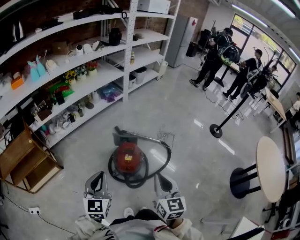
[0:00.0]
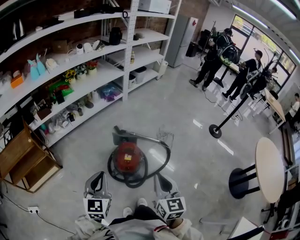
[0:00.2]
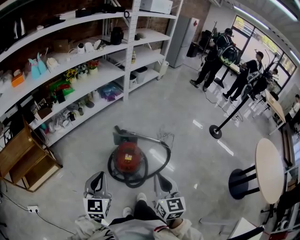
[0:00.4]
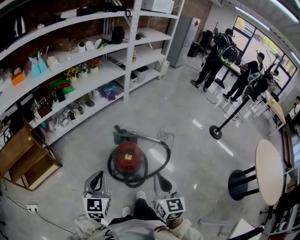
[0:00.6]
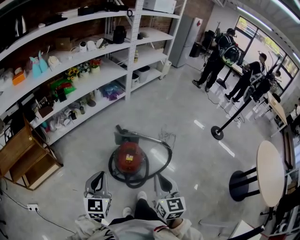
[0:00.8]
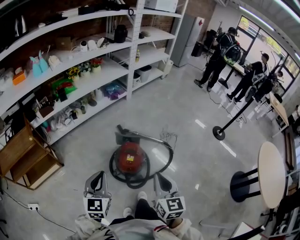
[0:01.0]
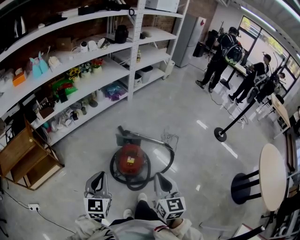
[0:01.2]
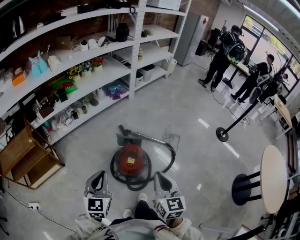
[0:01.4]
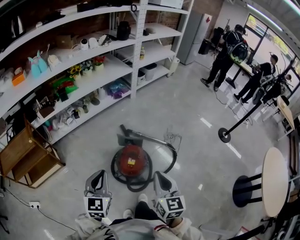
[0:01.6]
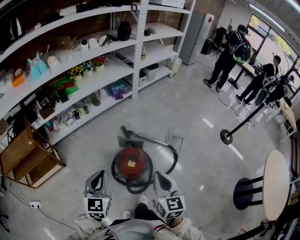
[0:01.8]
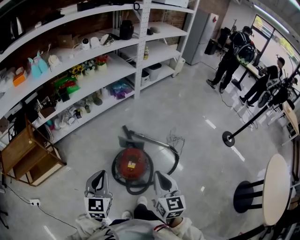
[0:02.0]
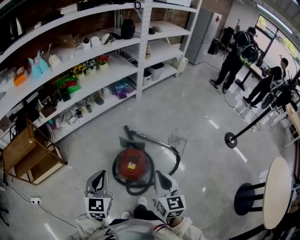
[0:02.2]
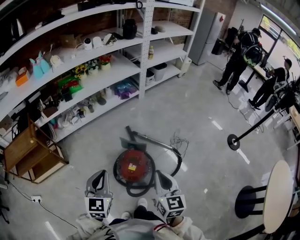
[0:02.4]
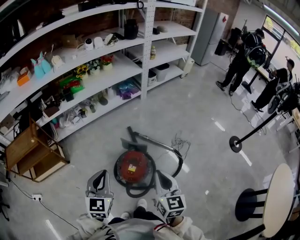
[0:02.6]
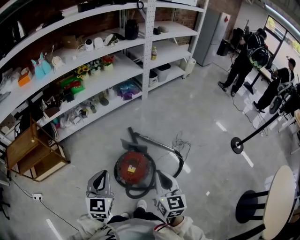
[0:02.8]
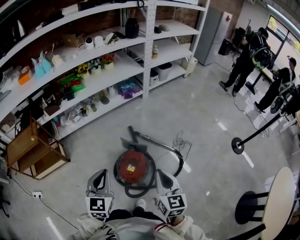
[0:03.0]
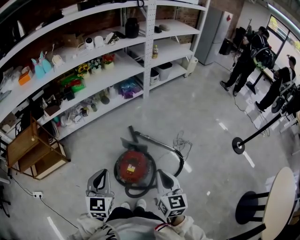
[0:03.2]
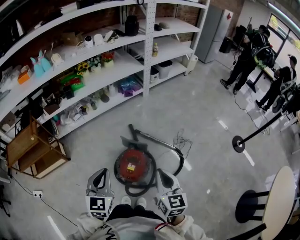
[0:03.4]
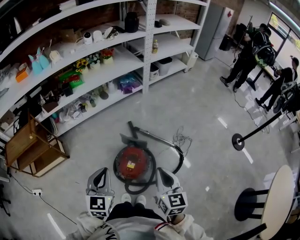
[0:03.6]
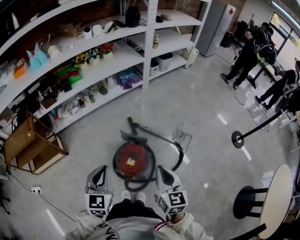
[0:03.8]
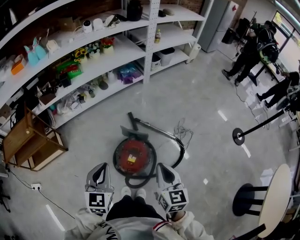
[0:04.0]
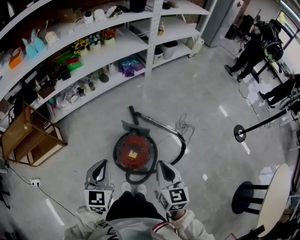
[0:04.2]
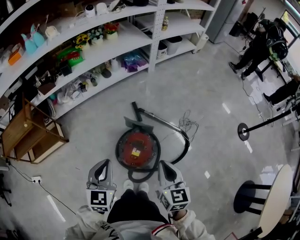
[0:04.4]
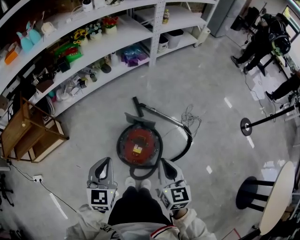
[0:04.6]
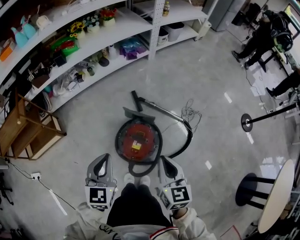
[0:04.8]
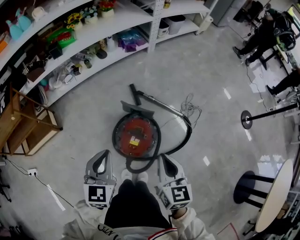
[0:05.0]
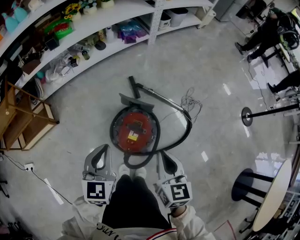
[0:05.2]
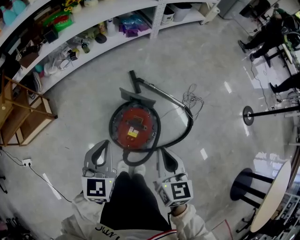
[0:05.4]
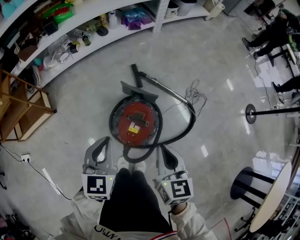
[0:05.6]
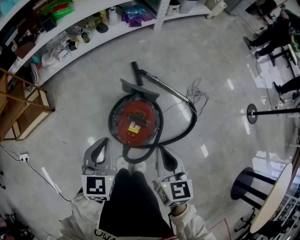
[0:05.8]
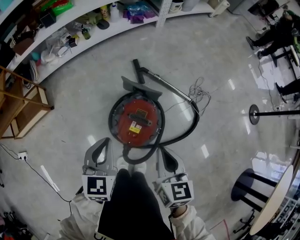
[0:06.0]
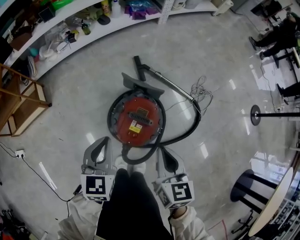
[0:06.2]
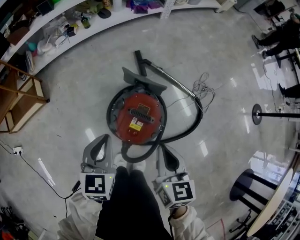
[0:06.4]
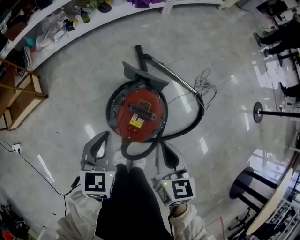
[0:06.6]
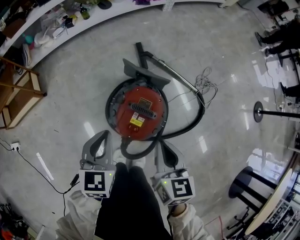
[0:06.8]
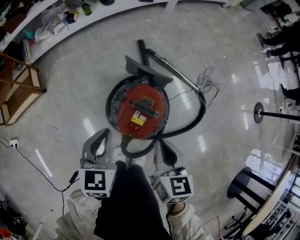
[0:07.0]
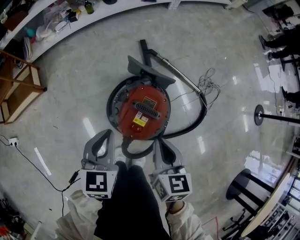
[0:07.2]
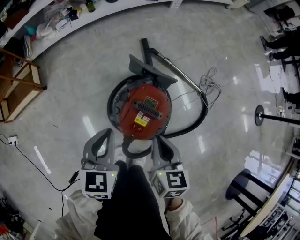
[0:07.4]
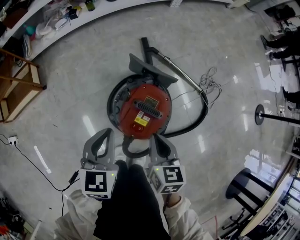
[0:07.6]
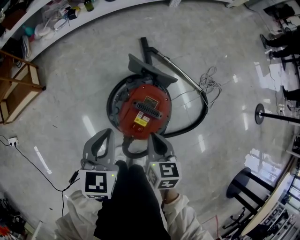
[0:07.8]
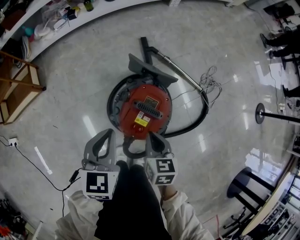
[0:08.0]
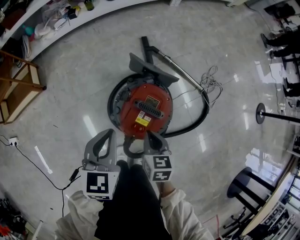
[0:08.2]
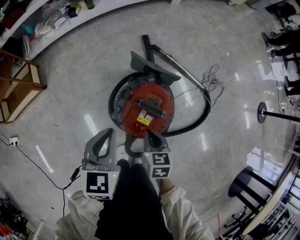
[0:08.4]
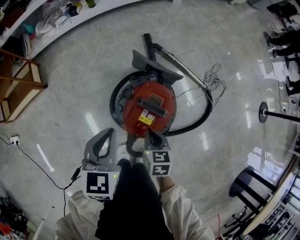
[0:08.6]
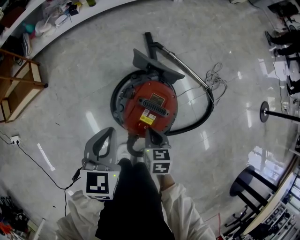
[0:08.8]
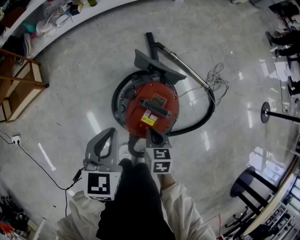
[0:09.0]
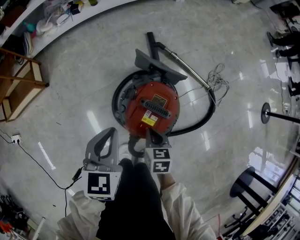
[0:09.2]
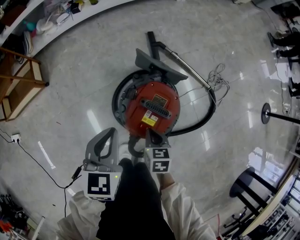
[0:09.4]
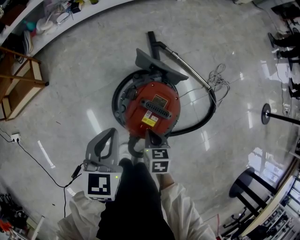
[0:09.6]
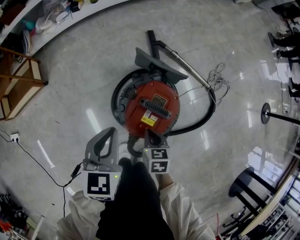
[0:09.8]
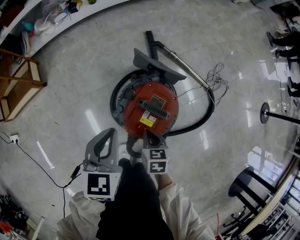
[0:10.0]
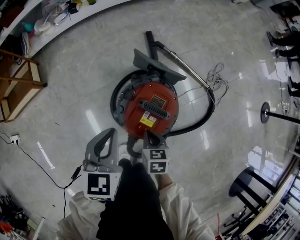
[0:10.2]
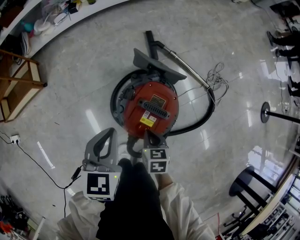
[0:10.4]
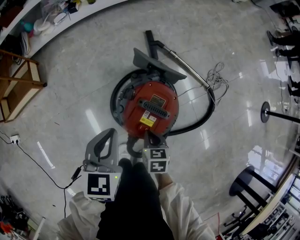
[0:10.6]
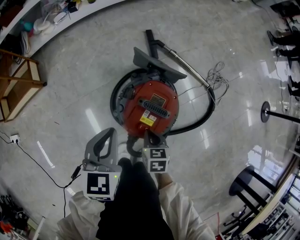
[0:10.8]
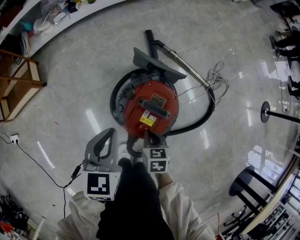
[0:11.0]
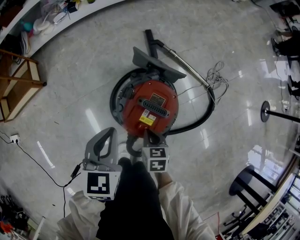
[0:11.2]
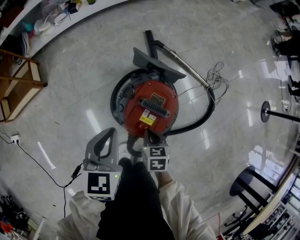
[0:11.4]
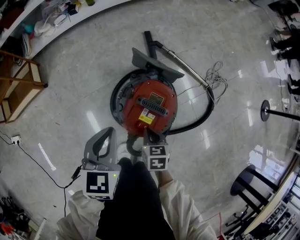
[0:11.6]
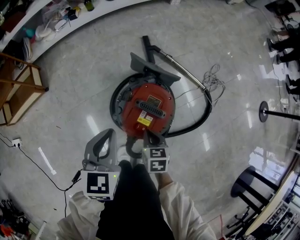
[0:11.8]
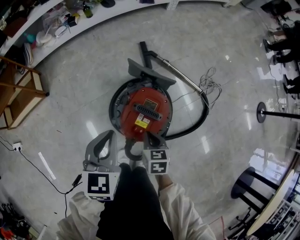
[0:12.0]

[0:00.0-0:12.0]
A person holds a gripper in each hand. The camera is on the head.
0:00.0 to 0:01.6: The grippers both shift forward by roughly 5 cm.
0:01.6 to 0:03.0: The left gripper shifts some 10 cm to the right and forward. The right gripper moves forward and to the right, some 10 cm.
0:03.0 to 0:04.4: Both grippers travel together downward, about 5 cm.
0:04.4 to 0:06.0: Both grippers move downward, roughly 15 cm.
0:06.0 to 0:07.6: The left gripper heads downward, covering roughly 10 cm; the right gripper is displaced downward by roughly 15 cm.
0:07.6 to 0:09.0: The right gripper is displaced downward by roughly 10 cm.
0:09.0 to 0:12.0: The grippers stay close to where they were, moving slightly.

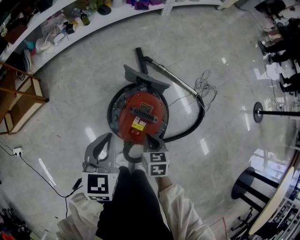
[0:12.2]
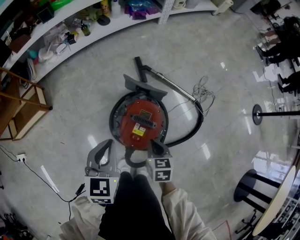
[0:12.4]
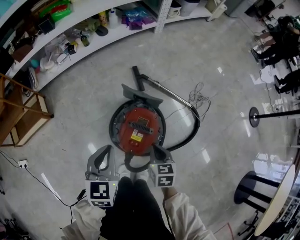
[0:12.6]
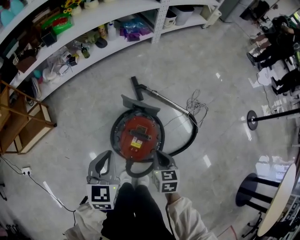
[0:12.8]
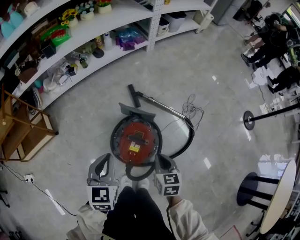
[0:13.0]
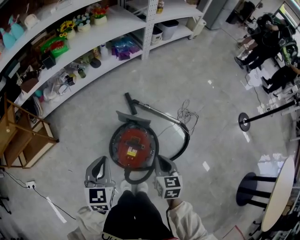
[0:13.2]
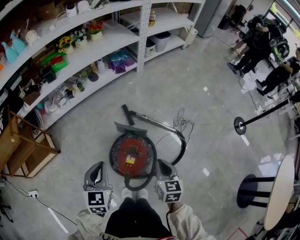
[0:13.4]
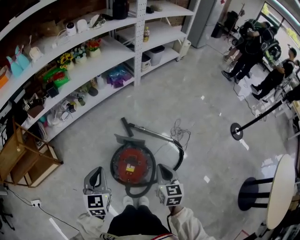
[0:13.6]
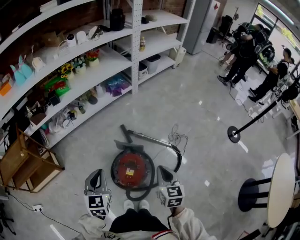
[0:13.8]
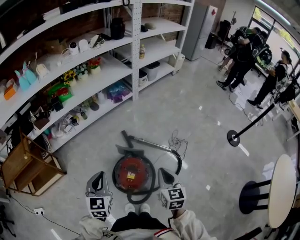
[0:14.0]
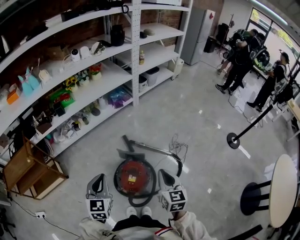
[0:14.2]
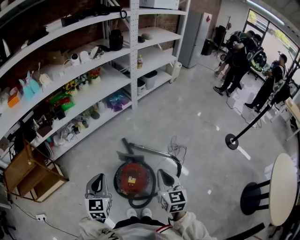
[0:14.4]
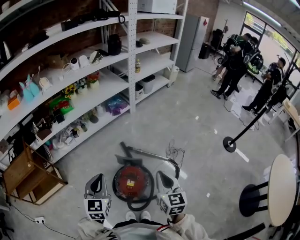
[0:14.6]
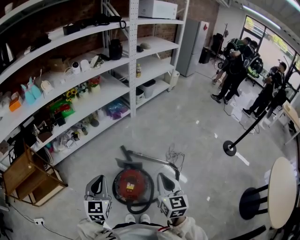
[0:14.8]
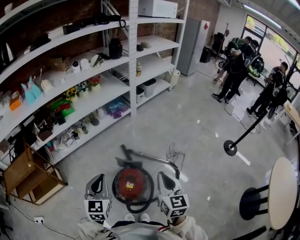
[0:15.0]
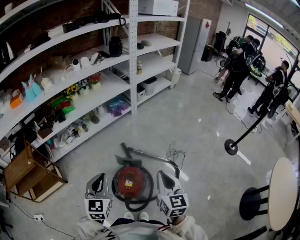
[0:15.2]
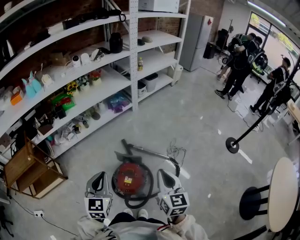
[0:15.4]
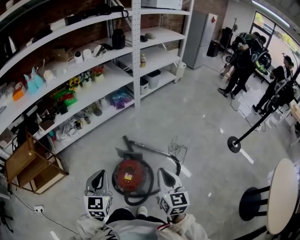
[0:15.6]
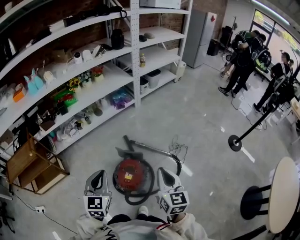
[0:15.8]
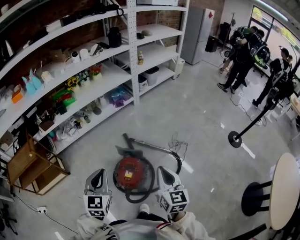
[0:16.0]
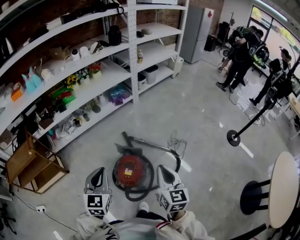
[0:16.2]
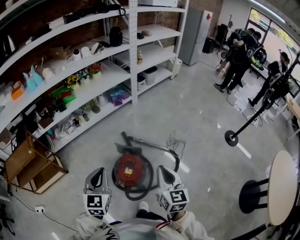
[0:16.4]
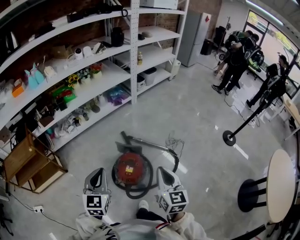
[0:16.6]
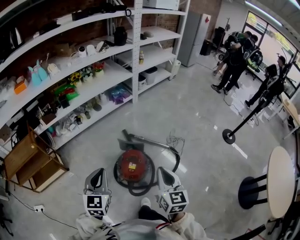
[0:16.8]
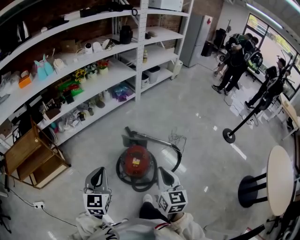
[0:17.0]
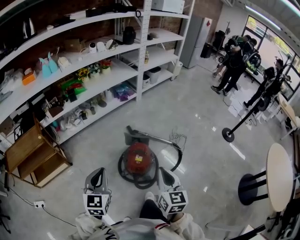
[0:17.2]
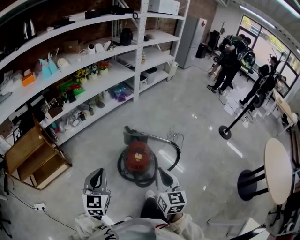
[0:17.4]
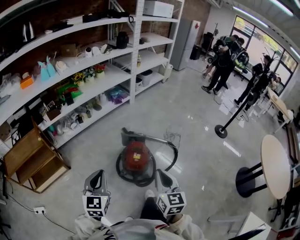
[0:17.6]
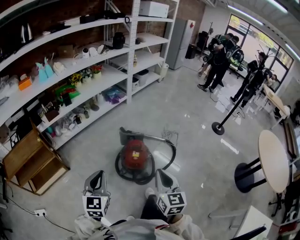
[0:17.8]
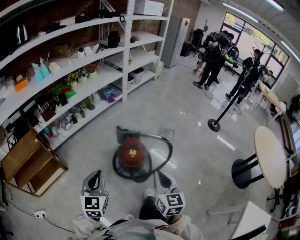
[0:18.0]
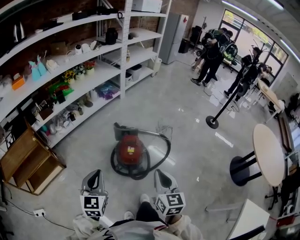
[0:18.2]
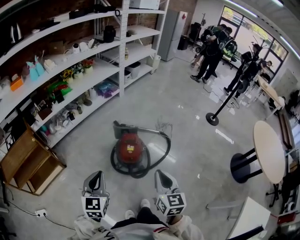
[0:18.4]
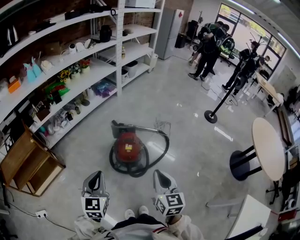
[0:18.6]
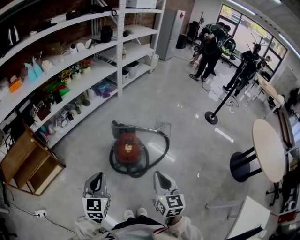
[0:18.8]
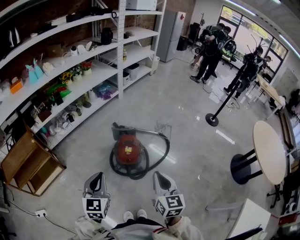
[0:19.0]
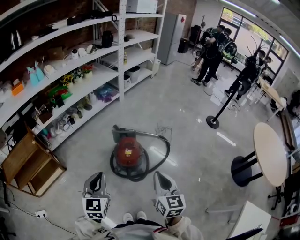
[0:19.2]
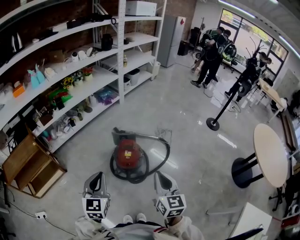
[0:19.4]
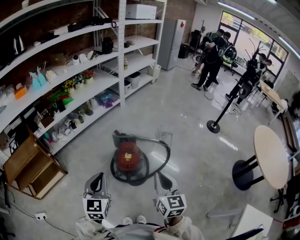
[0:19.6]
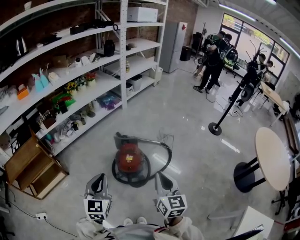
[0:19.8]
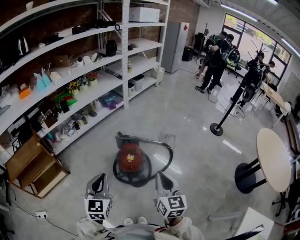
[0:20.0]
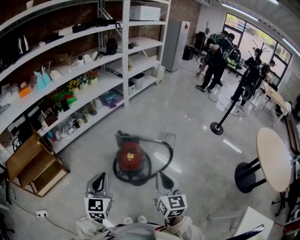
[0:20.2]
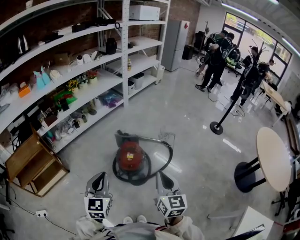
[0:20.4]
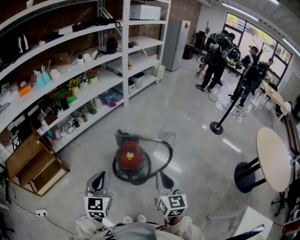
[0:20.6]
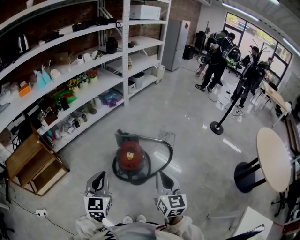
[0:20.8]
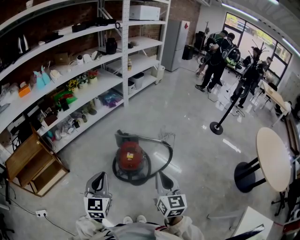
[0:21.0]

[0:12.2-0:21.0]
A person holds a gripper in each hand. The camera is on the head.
0:12.2 to 0:13.6: The right gripper goes about 30 cm upward, and changes its angle by approximately 30 degrees; the left gripper travels upward by some 20 cm.
0:13.6 to 0:15.2: The right gripper moves upward, roughly 15 cm, while the left gripper travels upward by some 10 cm.
0:15.2 to 0:16.6: The grippers both shift backward by some 5 cm.
0:16.6 to 0:18.0: Both grippers travel together backward and to the left, approximately 20 cm.
0:18.0 to 0:19.6: The two grippers go approximately 5 cm to the right.
0:19.6 to 0:21.0: Both grippers stay about where they are.

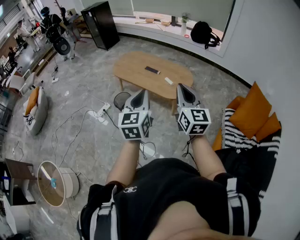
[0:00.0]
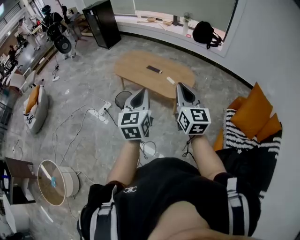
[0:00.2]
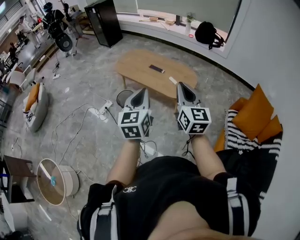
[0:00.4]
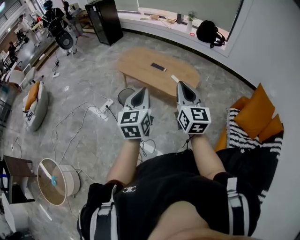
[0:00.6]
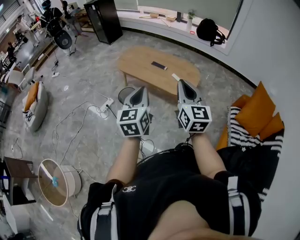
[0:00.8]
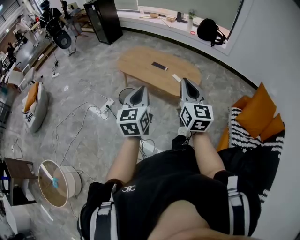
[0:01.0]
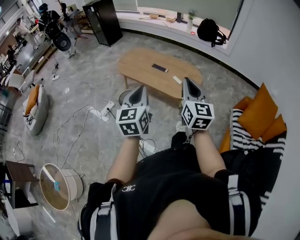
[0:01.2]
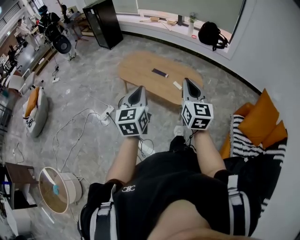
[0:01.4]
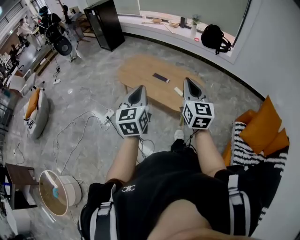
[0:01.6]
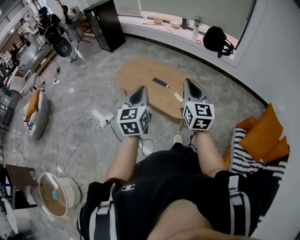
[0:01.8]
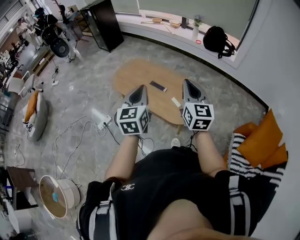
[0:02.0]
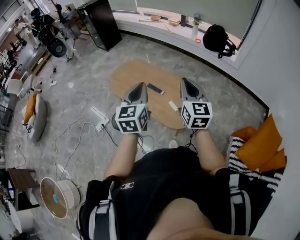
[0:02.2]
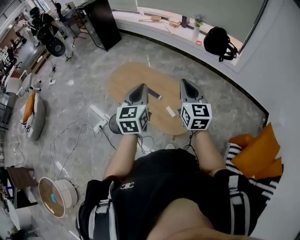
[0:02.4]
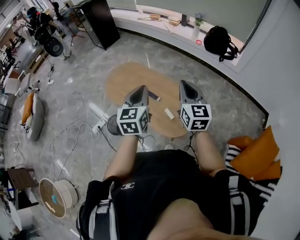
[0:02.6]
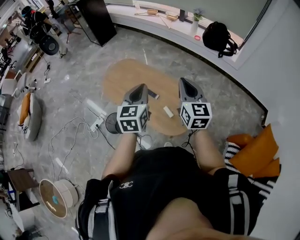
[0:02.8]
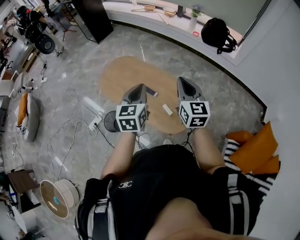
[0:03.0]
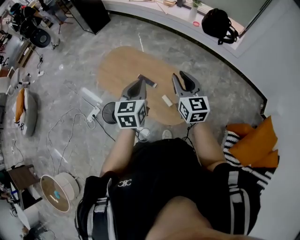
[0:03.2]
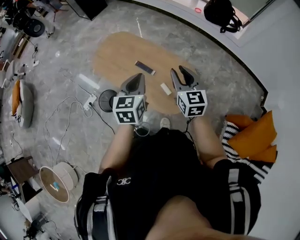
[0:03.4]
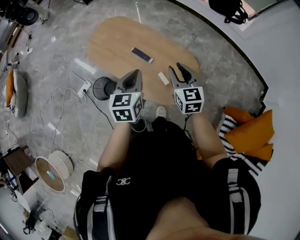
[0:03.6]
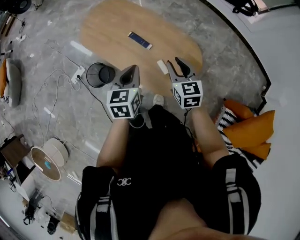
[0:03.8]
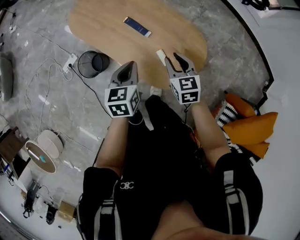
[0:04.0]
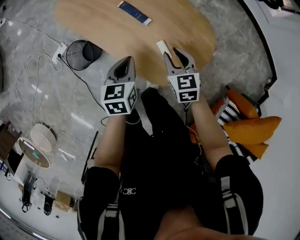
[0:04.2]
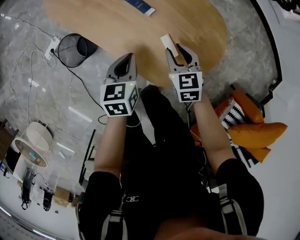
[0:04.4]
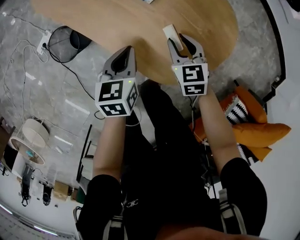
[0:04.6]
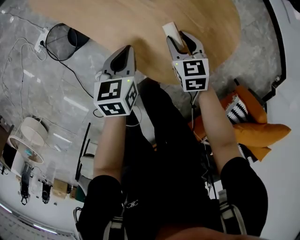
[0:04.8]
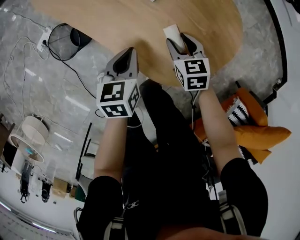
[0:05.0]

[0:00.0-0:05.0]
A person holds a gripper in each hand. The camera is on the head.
0:00.0 to 0:01.6: The left gripper is displaced forward and to the left by roughly 20 cm; the right gripper is displaced forward by approximately 20 cm.
0:01.6 to 0:03.4: Both grippers move forward, about 35 cm. The right gripper rotates about 20 degrees.
0:03.4 to 0:05.0: The two grippers go roughly 50 cm downward. The left gripper changes its angle by some 30 degrees. The right gripper tips its fingers downward by some 30 degrees, and opens its fingers.
